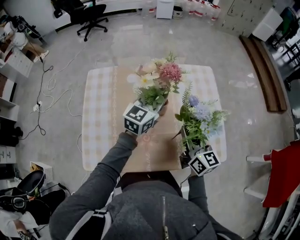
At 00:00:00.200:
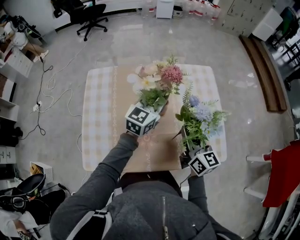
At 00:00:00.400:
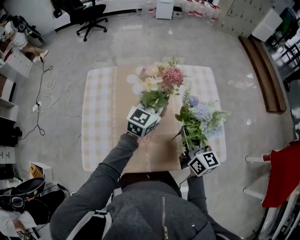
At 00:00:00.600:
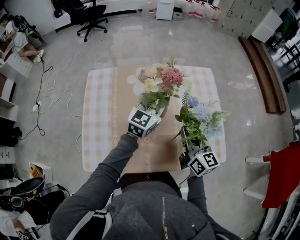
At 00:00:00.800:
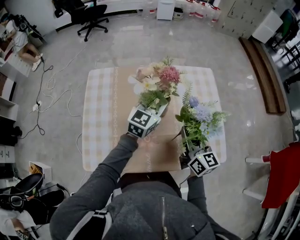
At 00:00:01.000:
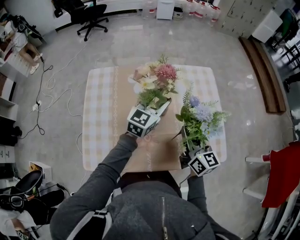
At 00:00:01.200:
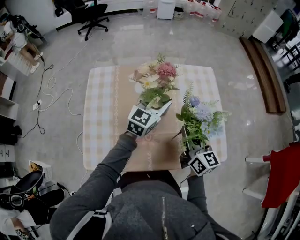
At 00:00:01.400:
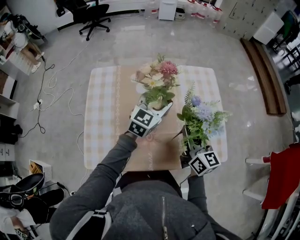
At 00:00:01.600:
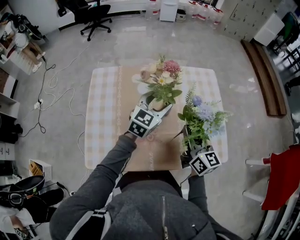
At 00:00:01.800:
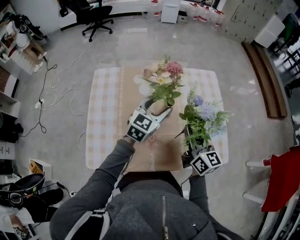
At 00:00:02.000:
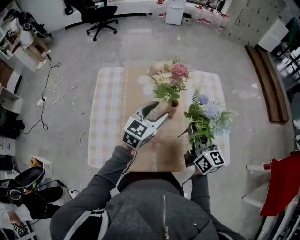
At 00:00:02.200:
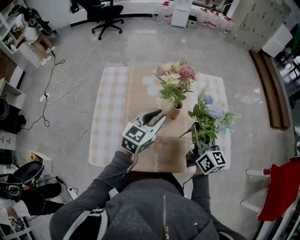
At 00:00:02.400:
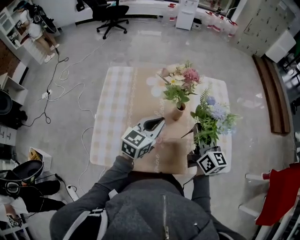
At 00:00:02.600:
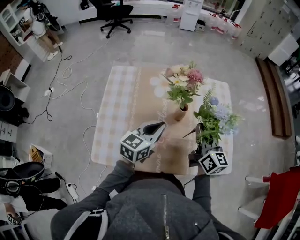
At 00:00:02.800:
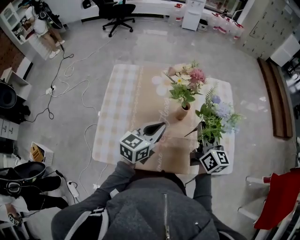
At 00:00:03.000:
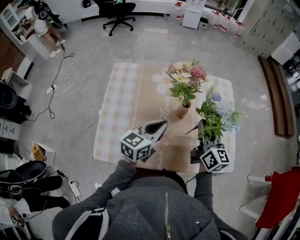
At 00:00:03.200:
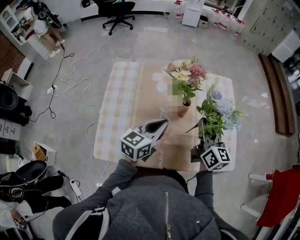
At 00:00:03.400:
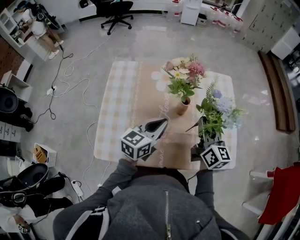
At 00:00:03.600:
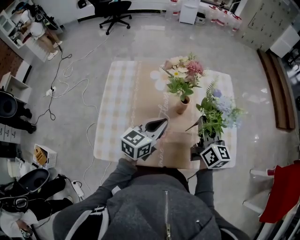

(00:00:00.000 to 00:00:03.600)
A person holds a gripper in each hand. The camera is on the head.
00:00:00.000 - 00:00:01.800: The left gripper moves some 5 cm, and opens its fingers.
00:00:01.800 - 00:00:03.600: The left gripper shifts approximately 10 cm backward, swivels about 20 degrees, and closes up.

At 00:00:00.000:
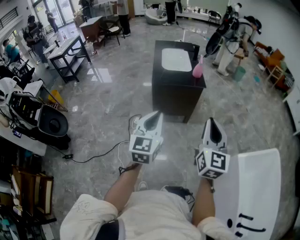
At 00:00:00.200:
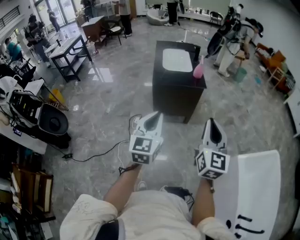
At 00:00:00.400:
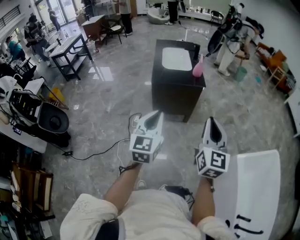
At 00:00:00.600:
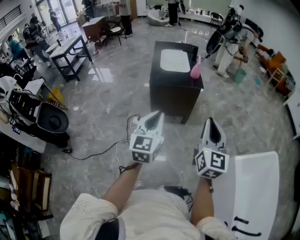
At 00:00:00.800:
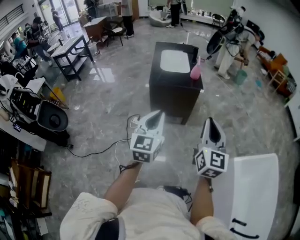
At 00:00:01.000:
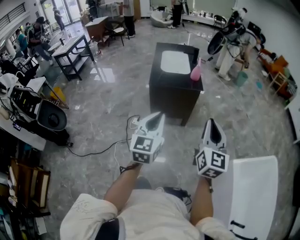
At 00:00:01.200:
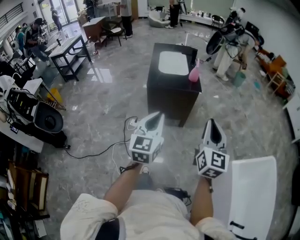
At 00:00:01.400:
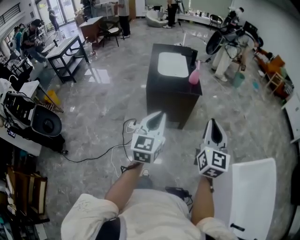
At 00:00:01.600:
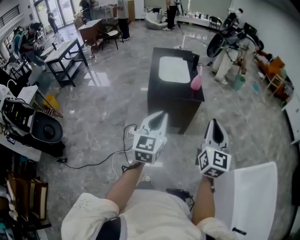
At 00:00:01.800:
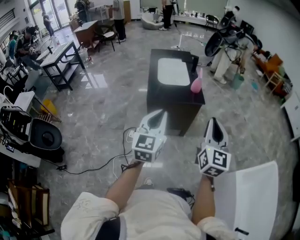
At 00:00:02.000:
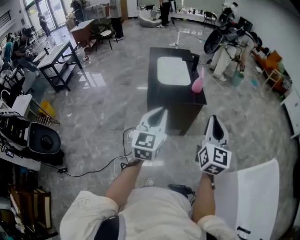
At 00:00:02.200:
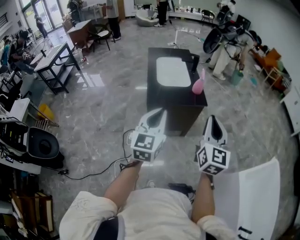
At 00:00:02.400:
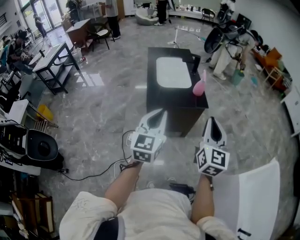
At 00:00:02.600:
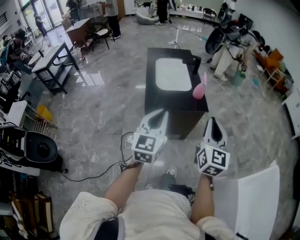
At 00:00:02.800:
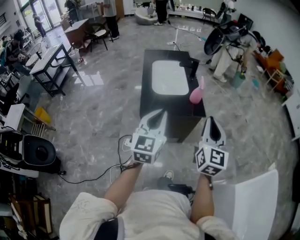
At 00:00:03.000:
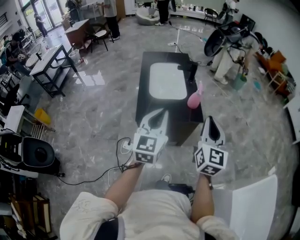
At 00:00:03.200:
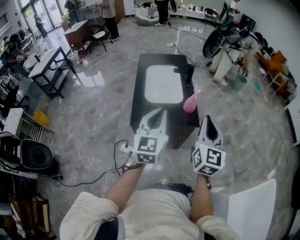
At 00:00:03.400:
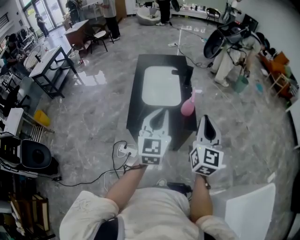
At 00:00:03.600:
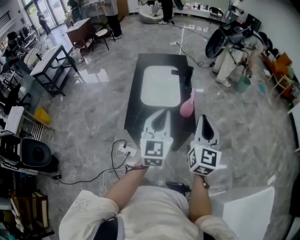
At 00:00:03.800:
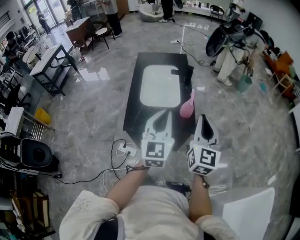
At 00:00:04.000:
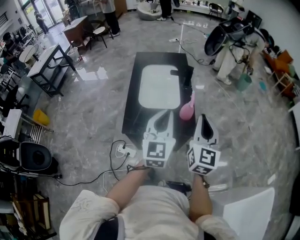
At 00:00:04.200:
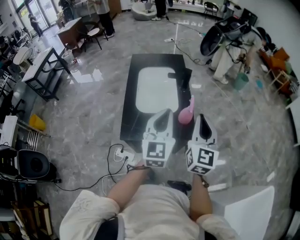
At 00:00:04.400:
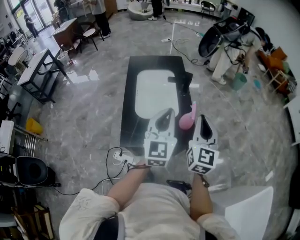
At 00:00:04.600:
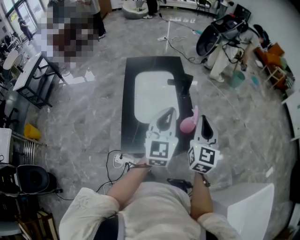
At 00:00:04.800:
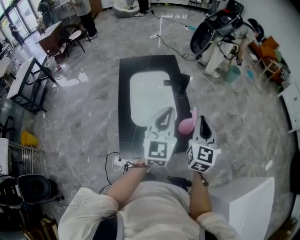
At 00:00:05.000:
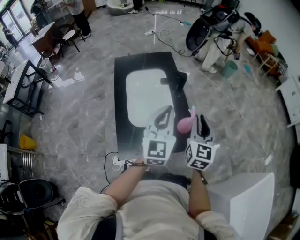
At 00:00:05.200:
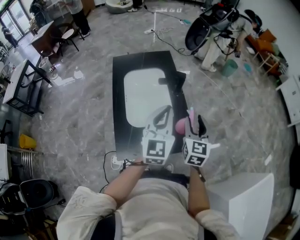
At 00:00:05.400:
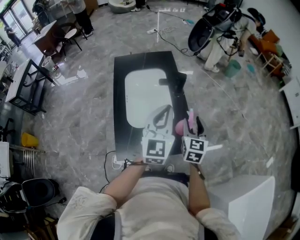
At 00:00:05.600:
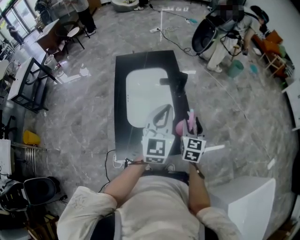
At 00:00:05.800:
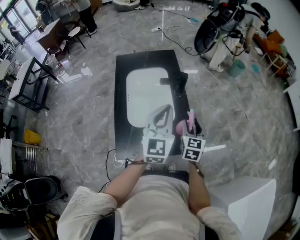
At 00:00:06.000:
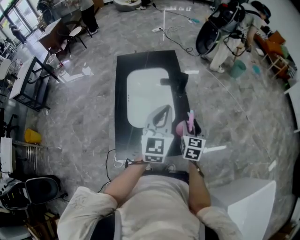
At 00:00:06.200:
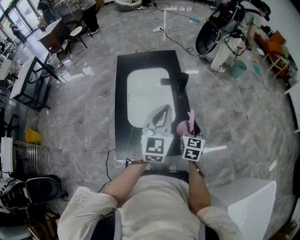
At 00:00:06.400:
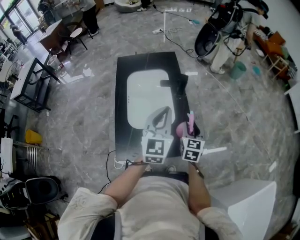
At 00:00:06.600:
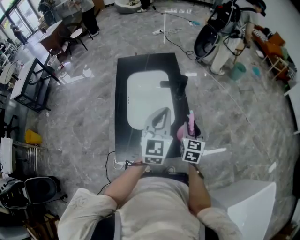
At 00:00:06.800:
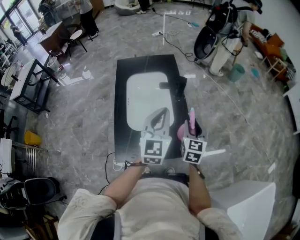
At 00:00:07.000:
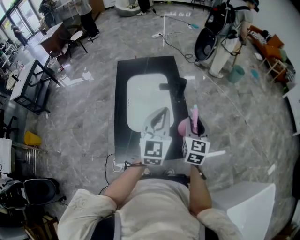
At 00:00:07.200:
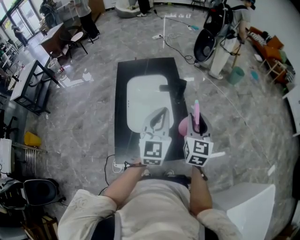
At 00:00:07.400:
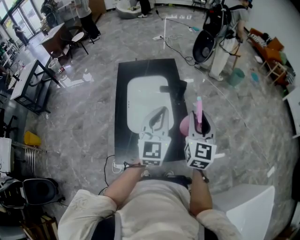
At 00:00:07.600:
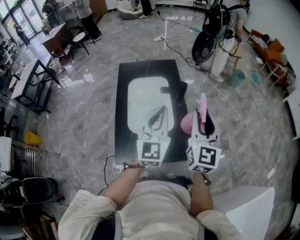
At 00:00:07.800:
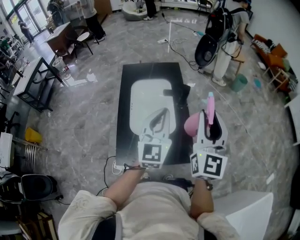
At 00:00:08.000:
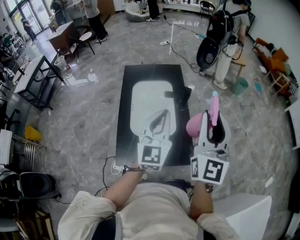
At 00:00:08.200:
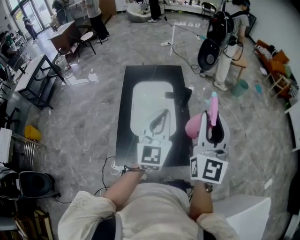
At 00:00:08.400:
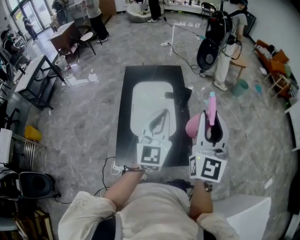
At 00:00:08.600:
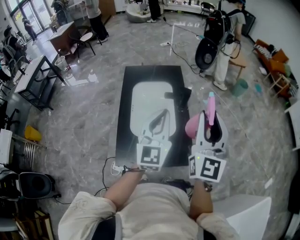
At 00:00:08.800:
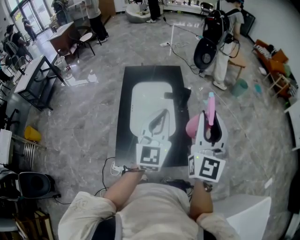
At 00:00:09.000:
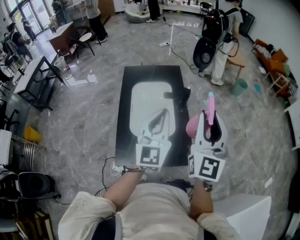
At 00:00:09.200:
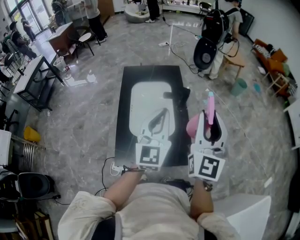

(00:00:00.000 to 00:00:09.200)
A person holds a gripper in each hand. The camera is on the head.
00:00:00.000 - 00:00:01.600: The grippers both shift forward by approximately 10 cm.
00:00:01.600 - 00:00:03.000: The two grippers go roughly 25 cm forward.
00:00:03.000 - 00:00:04.600: Both grippers move forward, roughly 25 cm.
00:00:04.600 - 00:00:06.200: The right gripper moves downward and forward, roughly 20 cm, swivels roughly 20 degrees, and opens up; the left gripper is displaced forward by about 10 cm.
00:00:06.200 - 00:00:07.600: The right gripper moves upward, about 20 cm, and swivels approximately 30 degrees.
00:00:07.600 - 00:00:09.200: The right gripper moves upward, roughly 5 cm.

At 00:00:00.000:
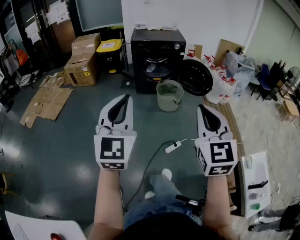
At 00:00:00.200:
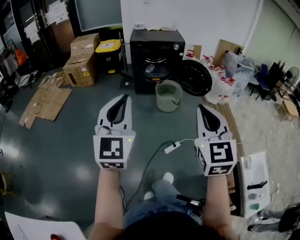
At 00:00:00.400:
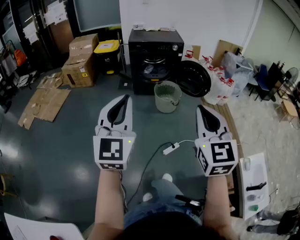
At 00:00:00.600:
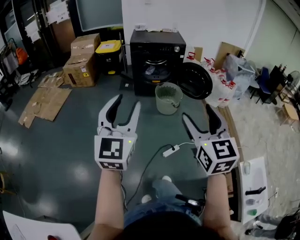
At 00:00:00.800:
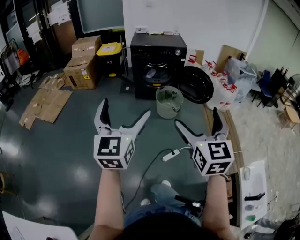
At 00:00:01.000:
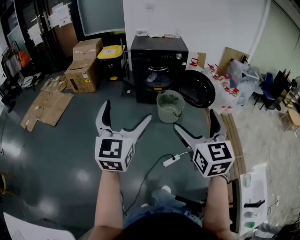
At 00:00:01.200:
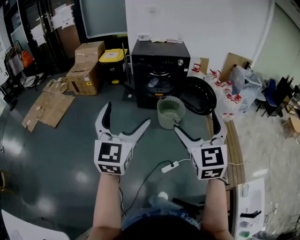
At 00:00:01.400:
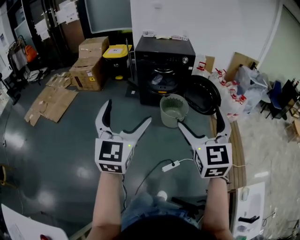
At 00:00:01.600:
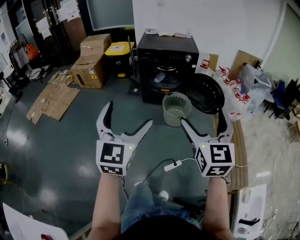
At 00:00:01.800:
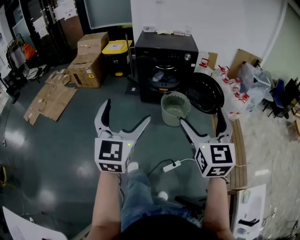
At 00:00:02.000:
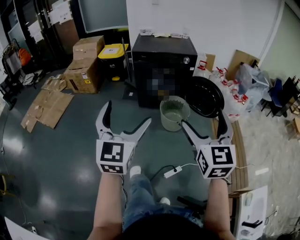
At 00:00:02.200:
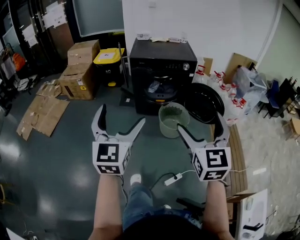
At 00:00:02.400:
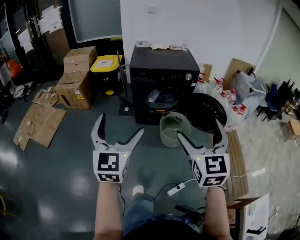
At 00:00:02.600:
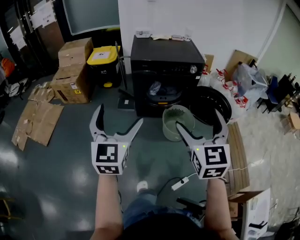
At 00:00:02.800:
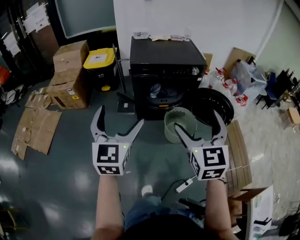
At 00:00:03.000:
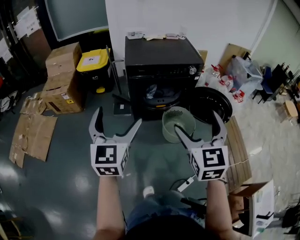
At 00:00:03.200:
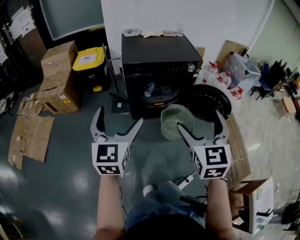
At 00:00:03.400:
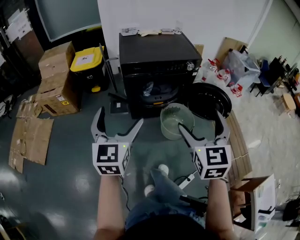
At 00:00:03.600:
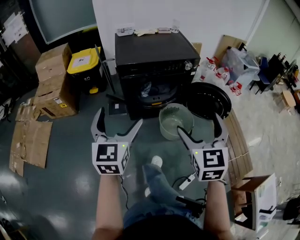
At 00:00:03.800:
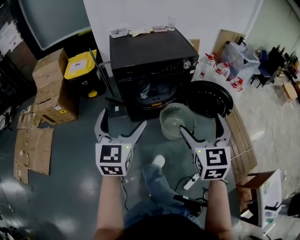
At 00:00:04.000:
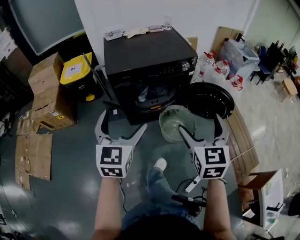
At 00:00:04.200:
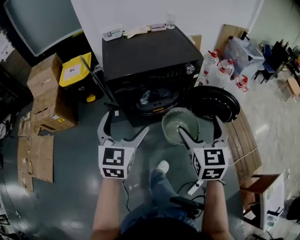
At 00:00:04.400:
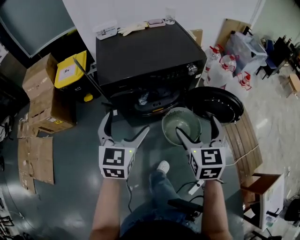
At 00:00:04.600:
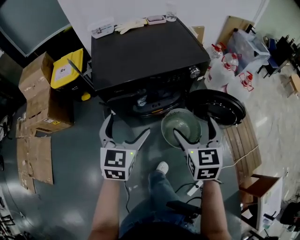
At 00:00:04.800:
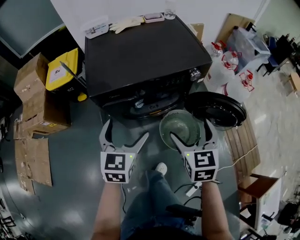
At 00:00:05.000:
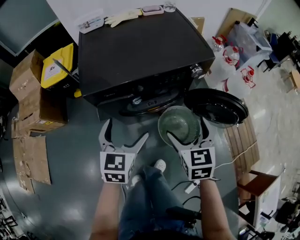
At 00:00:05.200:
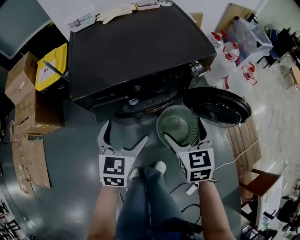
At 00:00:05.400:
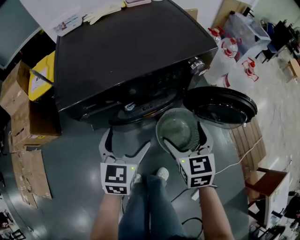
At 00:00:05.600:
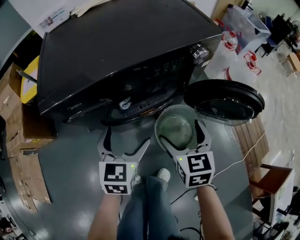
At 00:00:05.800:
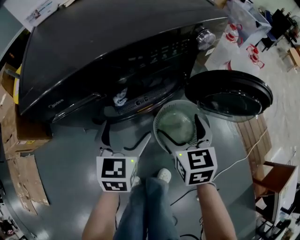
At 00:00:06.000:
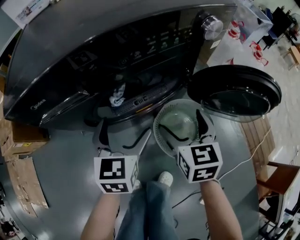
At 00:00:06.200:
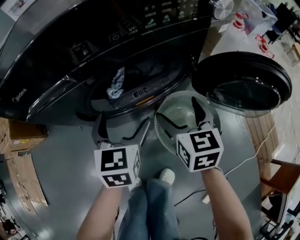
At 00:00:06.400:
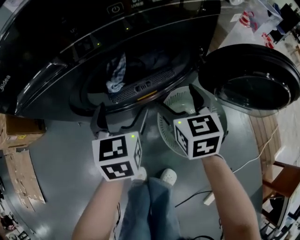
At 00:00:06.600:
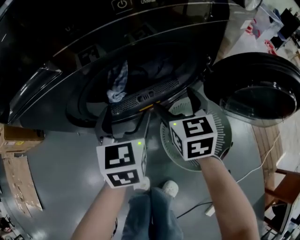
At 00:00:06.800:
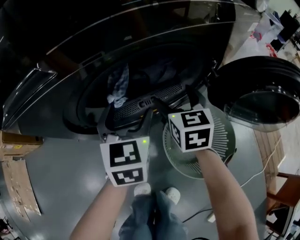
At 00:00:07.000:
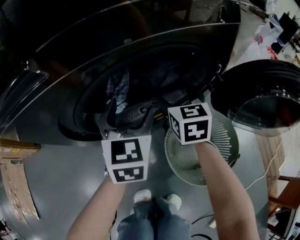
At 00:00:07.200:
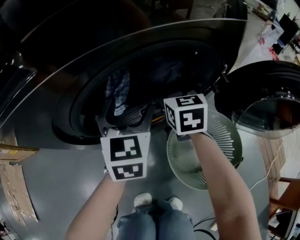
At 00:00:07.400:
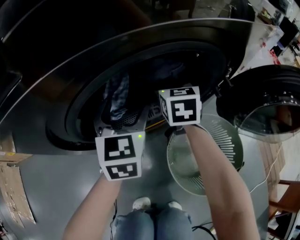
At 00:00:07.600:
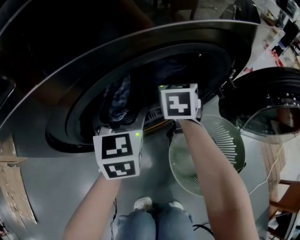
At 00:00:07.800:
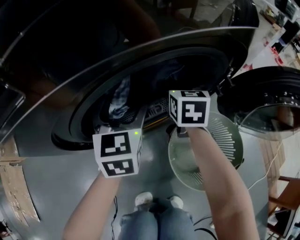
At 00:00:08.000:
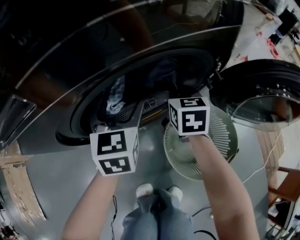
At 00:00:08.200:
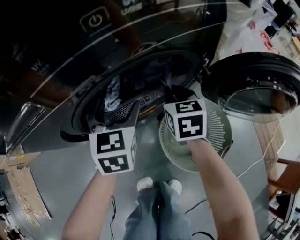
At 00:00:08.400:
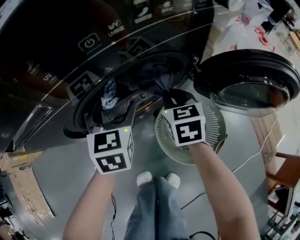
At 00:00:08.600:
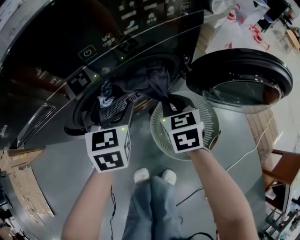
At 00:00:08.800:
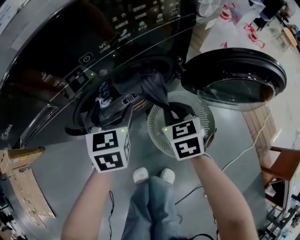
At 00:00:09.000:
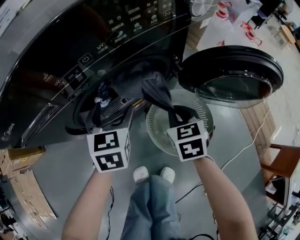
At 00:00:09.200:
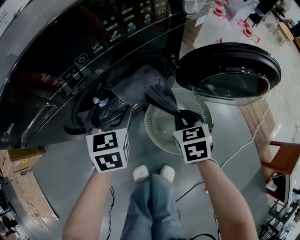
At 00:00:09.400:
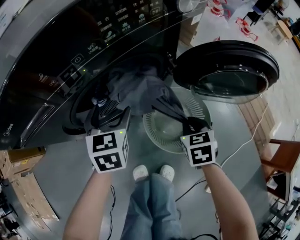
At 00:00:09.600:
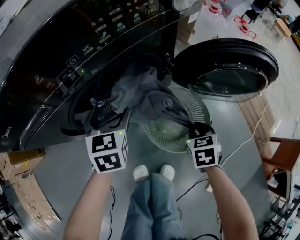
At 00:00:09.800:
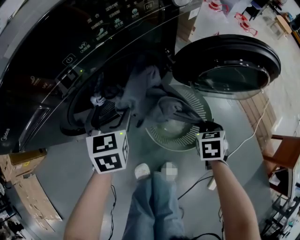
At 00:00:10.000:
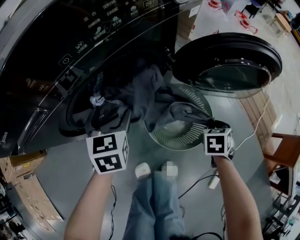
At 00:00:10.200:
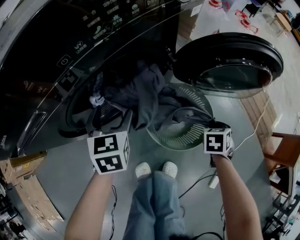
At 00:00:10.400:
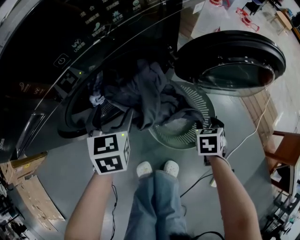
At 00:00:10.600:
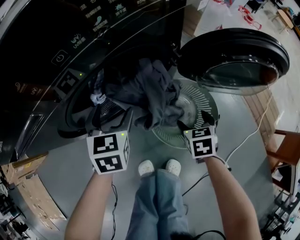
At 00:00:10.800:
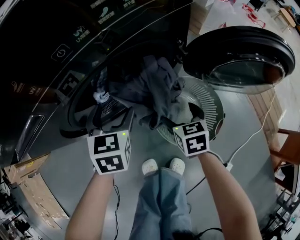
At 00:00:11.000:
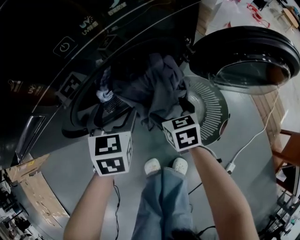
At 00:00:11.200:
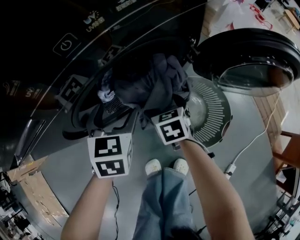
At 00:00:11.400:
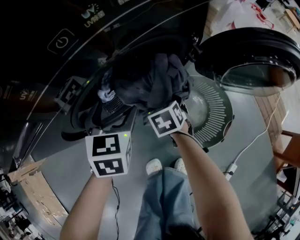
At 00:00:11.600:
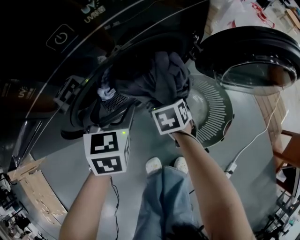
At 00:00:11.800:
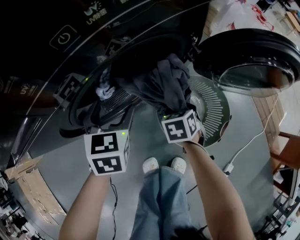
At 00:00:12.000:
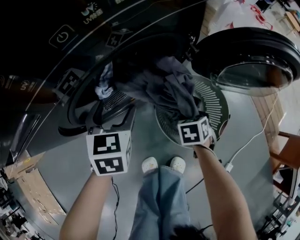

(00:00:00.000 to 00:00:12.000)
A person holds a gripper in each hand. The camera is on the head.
00:00:00.000 - 00:00:01.600: The grippers both shift forward by about 20 cm. The left gripper opens up. The right gripper opens its fingers.
00:00:01.600 - 00:00:03.000: Both grippers move forward and to the left, approximately 40 cm.
00:00:03.000 - 00:00:04.400: The right gripper goes about 30 cm forward and downward. Meanwhile the left gripper goes some 30 cm forward, and changes its angle by some 20 degrees.
00:00:04.400 - 00:00:06.000: The grippers both shift downward and forward by some 40 cm.
00:00:06.000 - 00:00:07.600: The two grippers go approximately 25 cm forward and downward. The right gripper closes its fingers.
00:00:07.600 - 00:00:09.000: The left gripper shifts approximately 10 cm upward and backward, while the right gripper moves backward and upward, approximately 25 cm.
00:00:09.000 - 00:00:10.400: The right gripper moves about 20 cm, and changes its angle by approximately 30 degrees.
00:00:10.400 - 00:00:12.000: The right gripper opens, then closes again.
